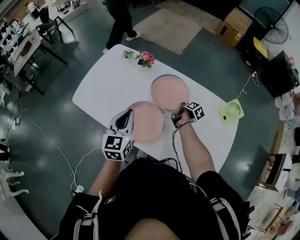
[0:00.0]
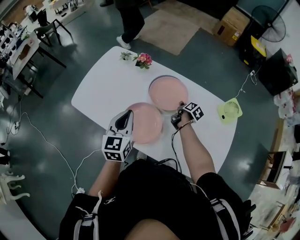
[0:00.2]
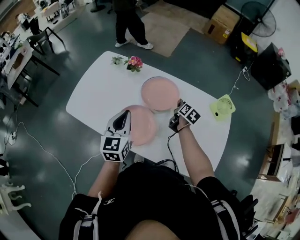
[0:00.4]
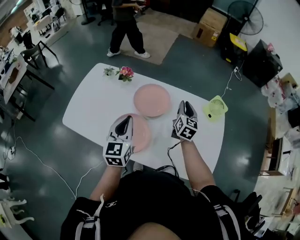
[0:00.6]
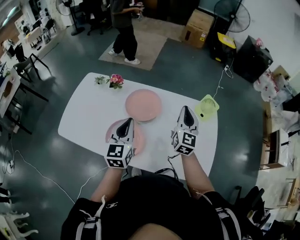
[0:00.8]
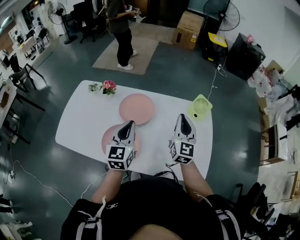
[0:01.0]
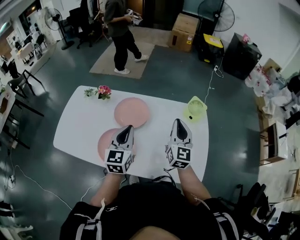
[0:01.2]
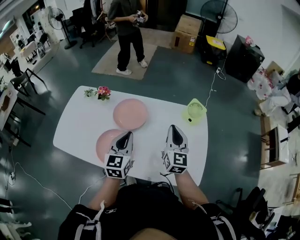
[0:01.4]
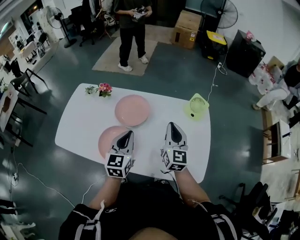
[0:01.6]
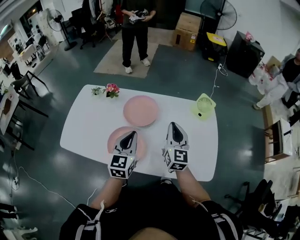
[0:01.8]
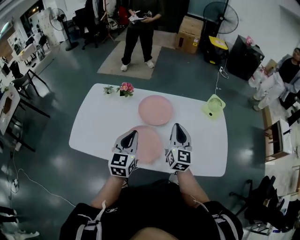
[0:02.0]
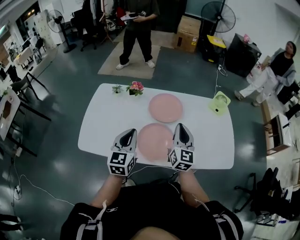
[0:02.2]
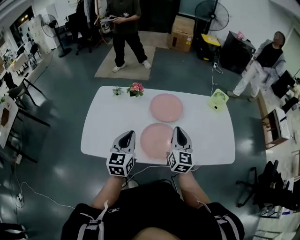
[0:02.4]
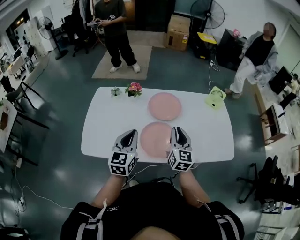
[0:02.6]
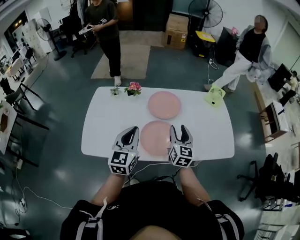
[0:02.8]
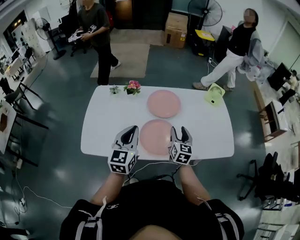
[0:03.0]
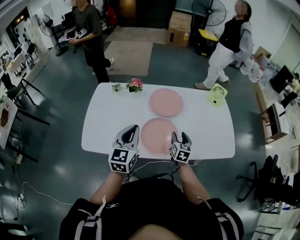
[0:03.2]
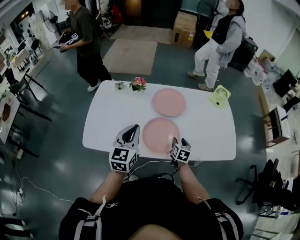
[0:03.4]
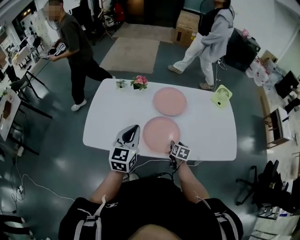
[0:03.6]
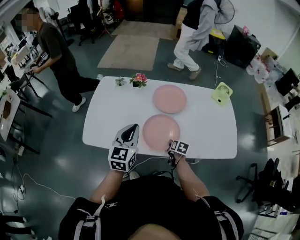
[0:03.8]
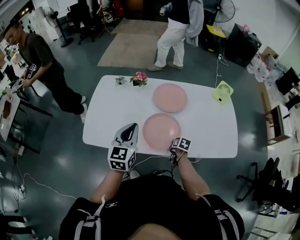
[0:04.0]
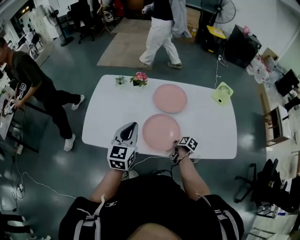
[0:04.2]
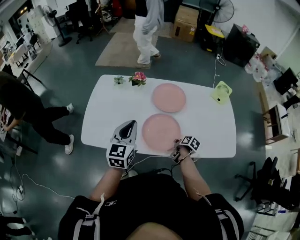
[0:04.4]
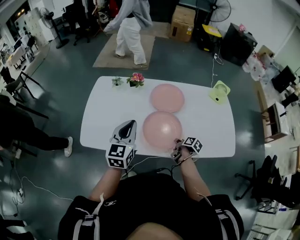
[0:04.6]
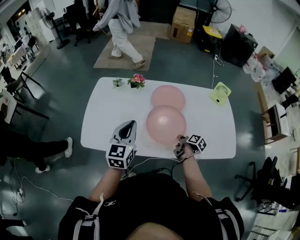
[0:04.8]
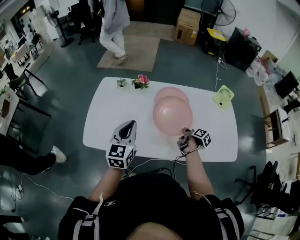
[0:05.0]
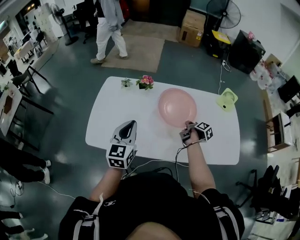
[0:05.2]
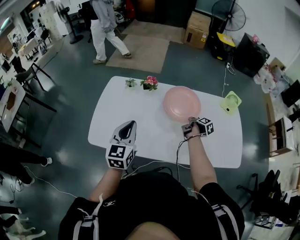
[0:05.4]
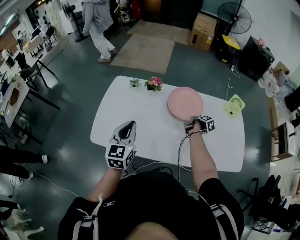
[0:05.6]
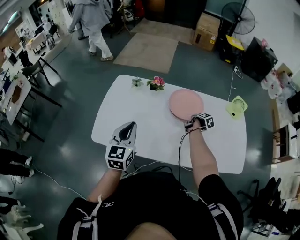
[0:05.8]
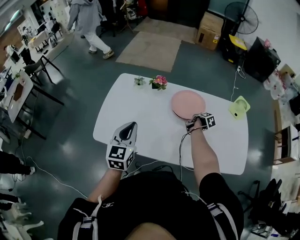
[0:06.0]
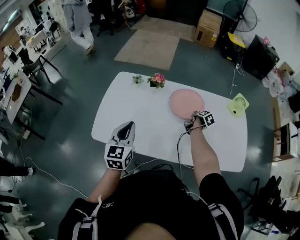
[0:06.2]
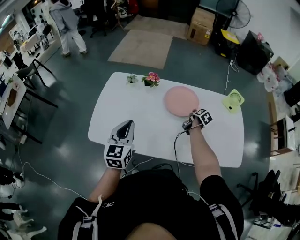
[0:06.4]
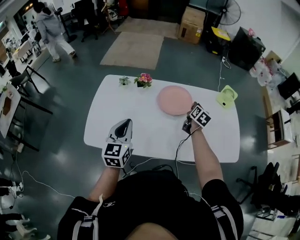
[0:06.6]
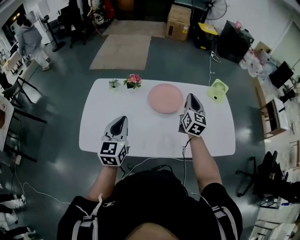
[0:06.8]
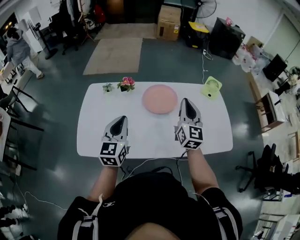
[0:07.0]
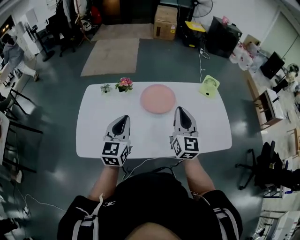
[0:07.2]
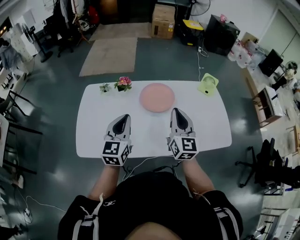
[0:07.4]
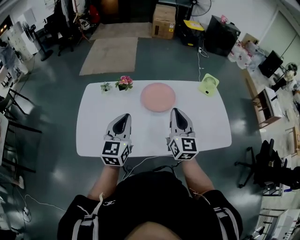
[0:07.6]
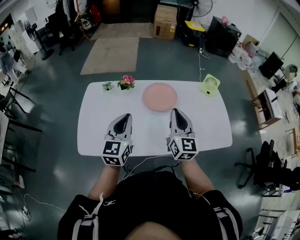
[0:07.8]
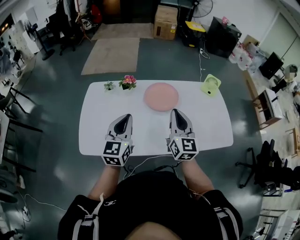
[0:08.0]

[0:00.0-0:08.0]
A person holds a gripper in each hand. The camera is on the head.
0:00.0 to 0:01.6: The left gripper heads to the right, covering roughly 20 cm, while the right gripper shifts roughly 35 cm upward, backward and to the right, and angles its fingers upward, by about 40 degrees.
0:01.6 to 0:03.2: The right gripper travels to the left, downward and backward by roughly 35 cm, rotates some 30 degrees, and opens up. The left gripper is displaced to the left and backward by roughly 35 cm.
0:03.2 to 0:04.8: The right gripper heads downward, covering approximately 10 cm, rotates around the line of its fingers by some 50 degrees, clockwise from behind, and closes up.
0:04.8 to 0:06.4: The left gripper shifts about 5 cm to the left. Meanwhile the right gripper moves forward, approximately 20 cm, swivels approximately 30 degrees, and opens.
0:06.4 to 0:08.0: The right gripper moves upward and backward, roughly 35 cm, tilts its fingers about 40 degrees upward, and closes; the left gripper goes some 5 cm upward.

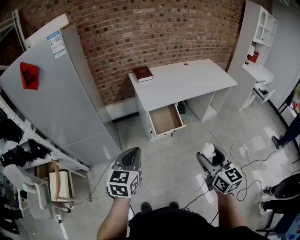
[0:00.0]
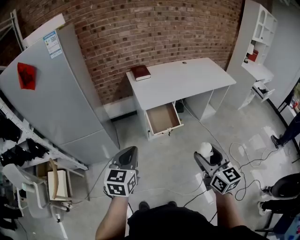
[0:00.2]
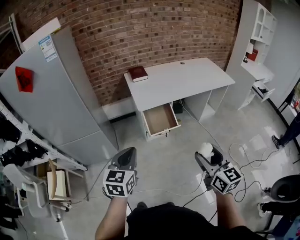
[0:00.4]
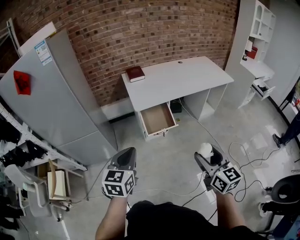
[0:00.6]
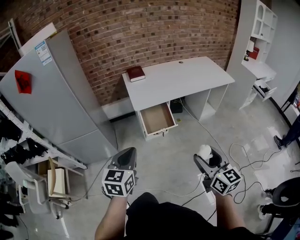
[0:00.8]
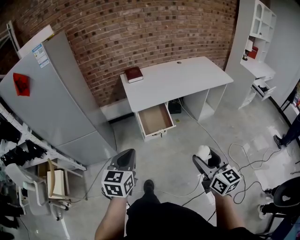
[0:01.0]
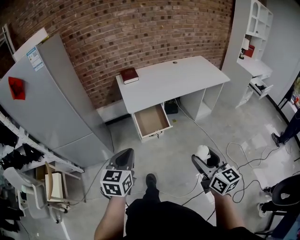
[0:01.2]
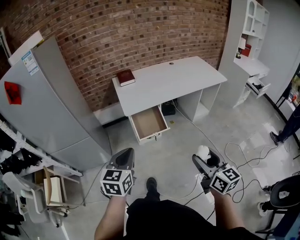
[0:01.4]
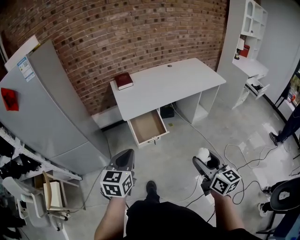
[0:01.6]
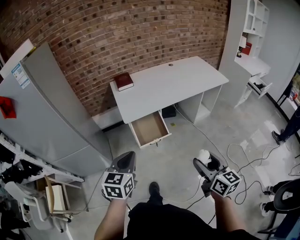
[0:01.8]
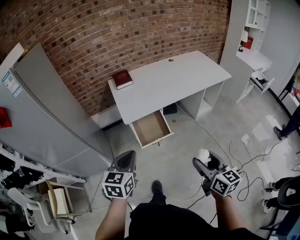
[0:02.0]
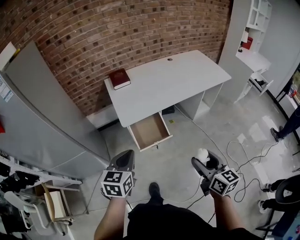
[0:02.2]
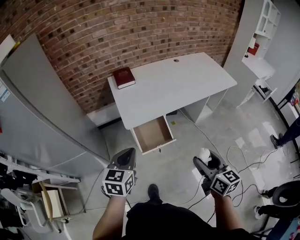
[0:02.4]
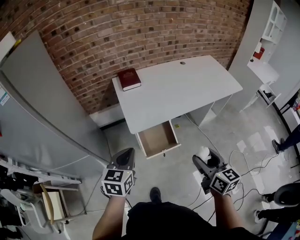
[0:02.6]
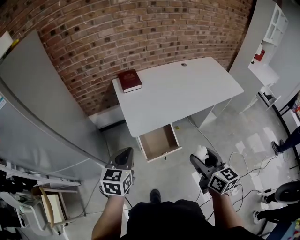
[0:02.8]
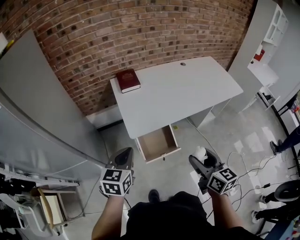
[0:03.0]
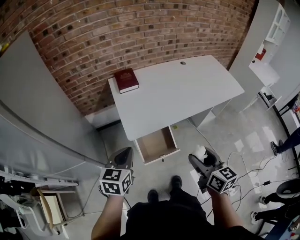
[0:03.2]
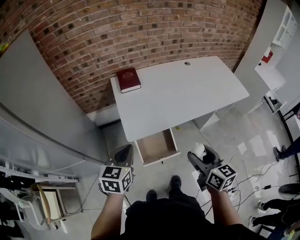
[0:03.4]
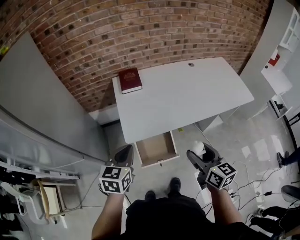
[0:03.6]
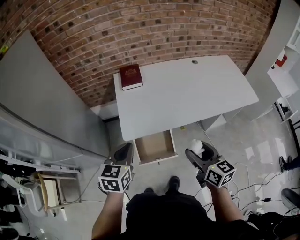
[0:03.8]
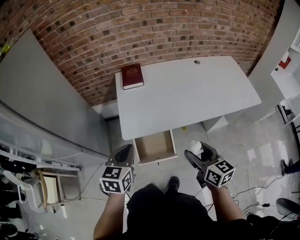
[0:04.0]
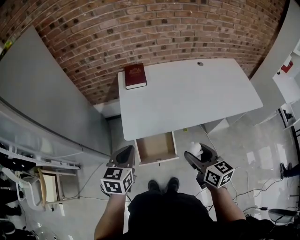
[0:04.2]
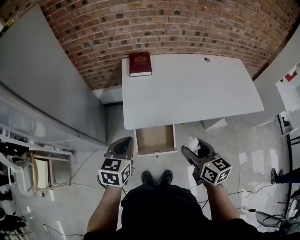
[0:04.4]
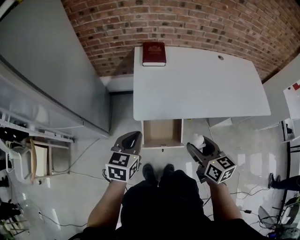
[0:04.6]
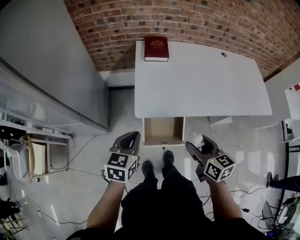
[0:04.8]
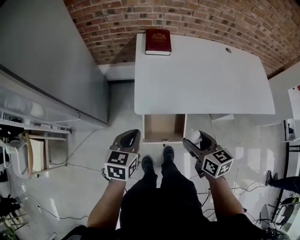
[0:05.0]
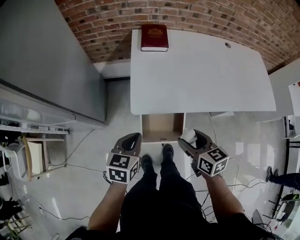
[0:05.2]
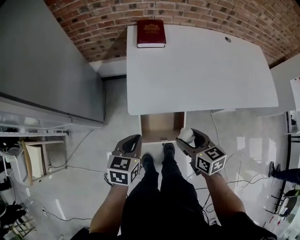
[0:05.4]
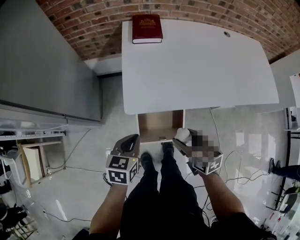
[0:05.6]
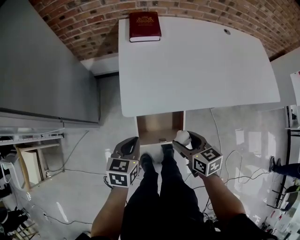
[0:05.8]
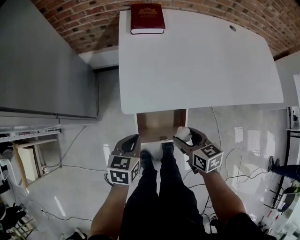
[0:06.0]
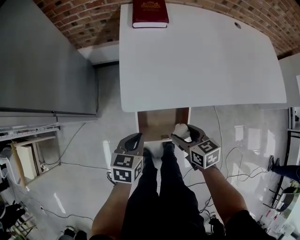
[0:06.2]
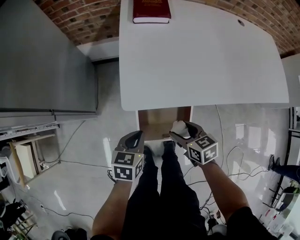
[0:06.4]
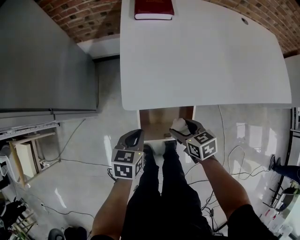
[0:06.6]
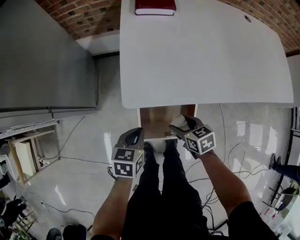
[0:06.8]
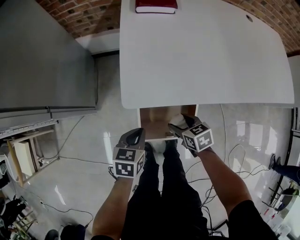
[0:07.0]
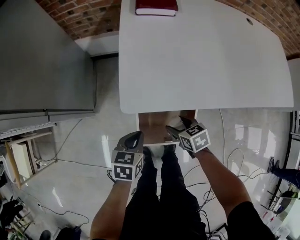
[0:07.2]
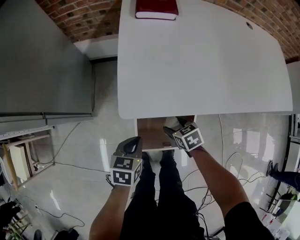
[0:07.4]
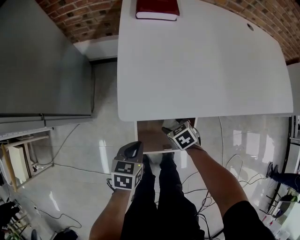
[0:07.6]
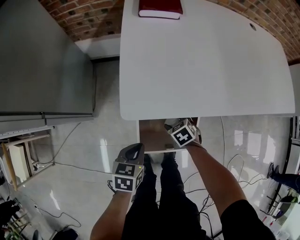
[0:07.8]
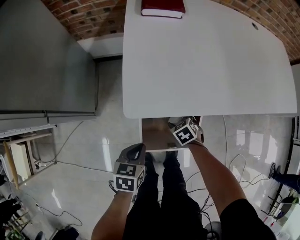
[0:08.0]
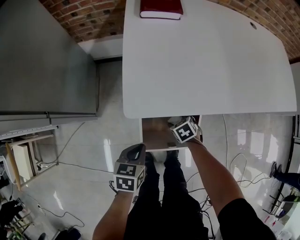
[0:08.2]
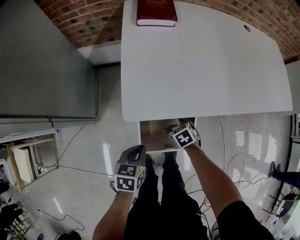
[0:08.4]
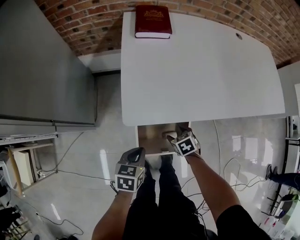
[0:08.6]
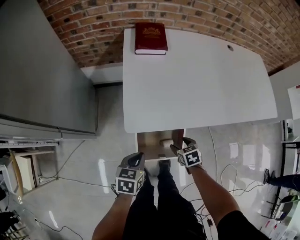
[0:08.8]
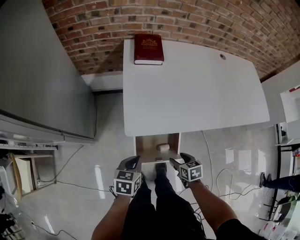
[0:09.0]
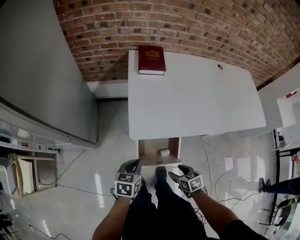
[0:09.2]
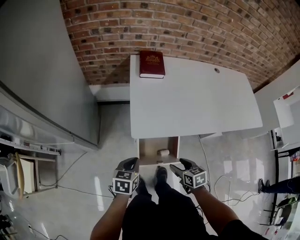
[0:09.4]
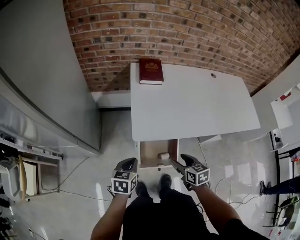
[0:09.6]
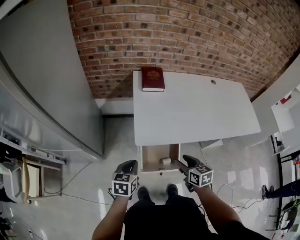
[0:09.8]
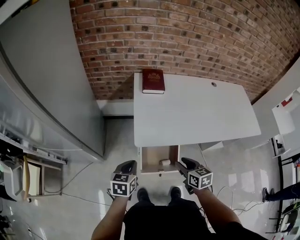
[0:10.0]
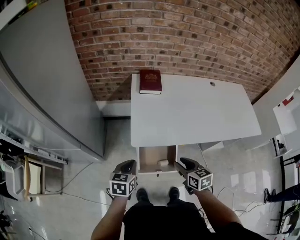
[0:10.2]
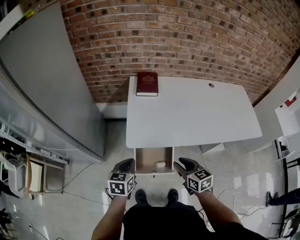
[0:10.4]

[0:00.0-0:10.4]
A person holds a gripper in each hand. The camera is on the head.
0:00.0 to 0:01.4: Both grippers travel together to the right, roughly 15 cm.
0:01.4 to 0:03.0: The two grippers go about 30 cm forward.
0:03.0 to 0:04.4: The right gripper goes roughly 15 cm forward, downward and to the right, and changes its angle by roughly 20 degrees. The left gripper heads to the right and forward, covering approximately 10 cm.
0:04.4 to 0:06.0: Both grippers travel together downward, some 25 cm. The right gripper changes its angle by about 20 degrees.
0:06.0 to 0:07.4: The left gripper goes some 10 cm downward. The right gripper is displaced downward by some 20 cm, and rotates about 20 degrees.
0:07.4 to 0:09.0: The right gripper travels upward, backward and to the right by about 15 cm; the left gripper heads upward, covering about 10 cm.
0:09.0 to 0:10.4: The right gripper travels upward by some 25 cm, swivels some 30 degrees, and closes its fingers; the left gripper goes some 15 cm upward.

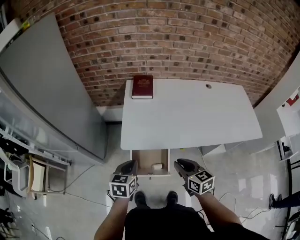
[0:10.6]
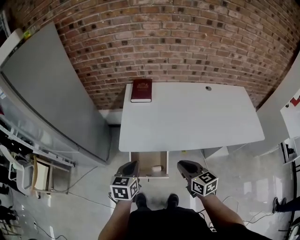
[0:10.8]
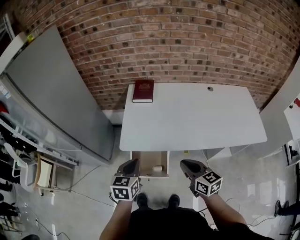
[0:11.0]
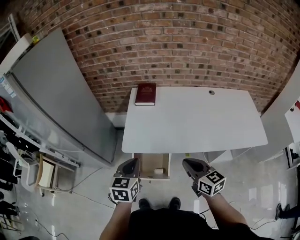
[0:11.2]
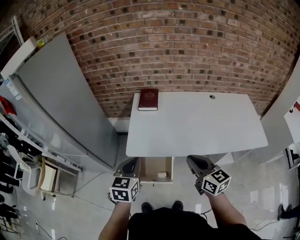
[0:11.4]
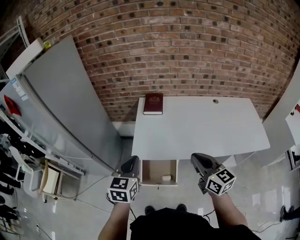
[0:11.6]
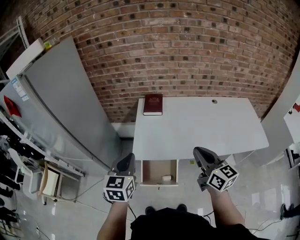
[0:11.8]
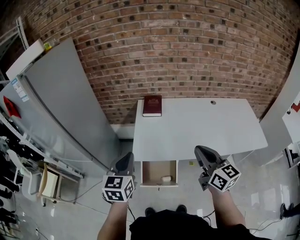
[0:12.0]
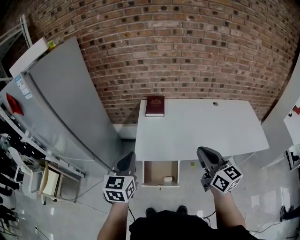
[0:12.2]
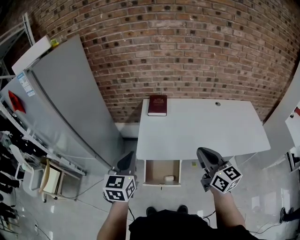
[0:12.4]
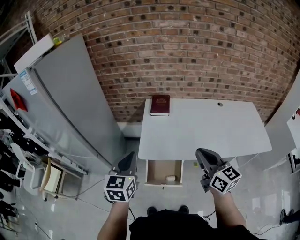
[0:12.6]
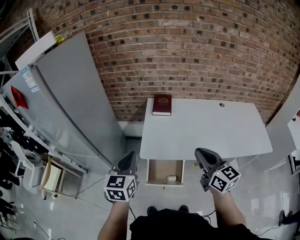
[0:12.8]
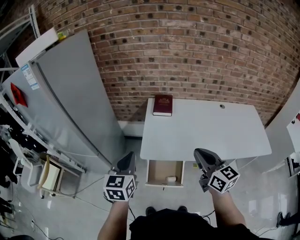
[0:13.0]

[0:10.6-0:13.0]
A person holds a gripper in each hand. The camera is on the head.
0:10.6 to 0:11.8: Both grippers travel together upward, approximately 20 cm. The right gripper swivels some 20 degrees. Meanwhile the left gripper changes its angle by roughly 20 degrees.
0:11.8 to 0:13.0: The grippers both shift to the left by about 5 cm.

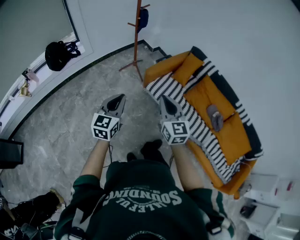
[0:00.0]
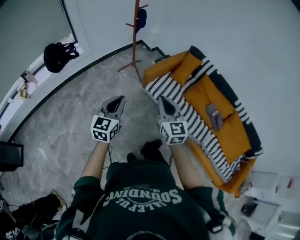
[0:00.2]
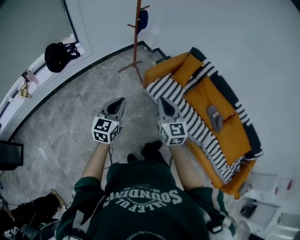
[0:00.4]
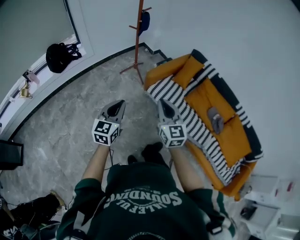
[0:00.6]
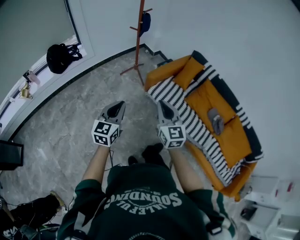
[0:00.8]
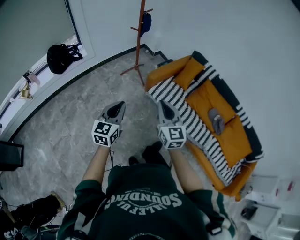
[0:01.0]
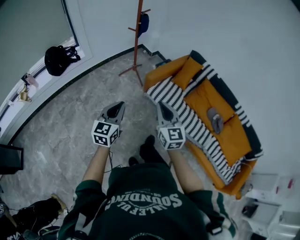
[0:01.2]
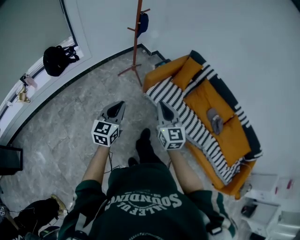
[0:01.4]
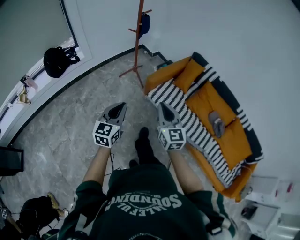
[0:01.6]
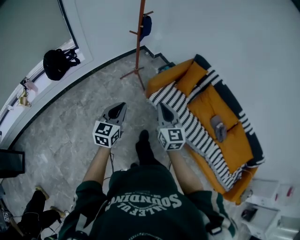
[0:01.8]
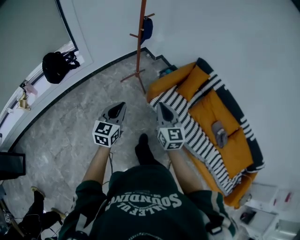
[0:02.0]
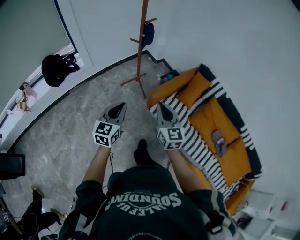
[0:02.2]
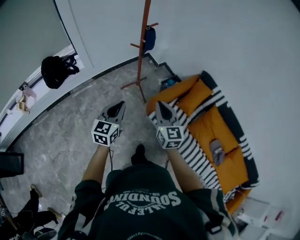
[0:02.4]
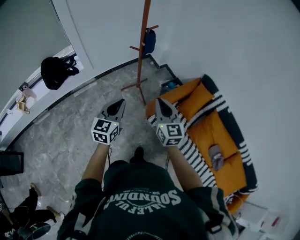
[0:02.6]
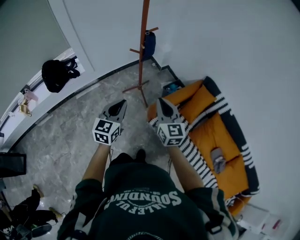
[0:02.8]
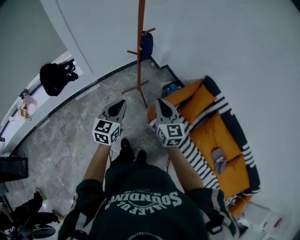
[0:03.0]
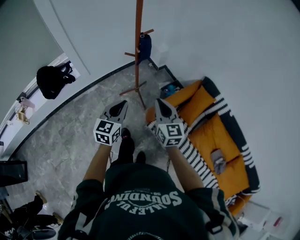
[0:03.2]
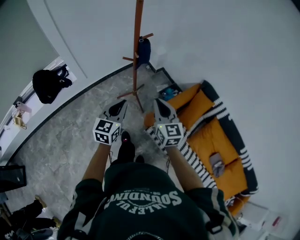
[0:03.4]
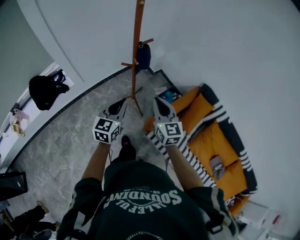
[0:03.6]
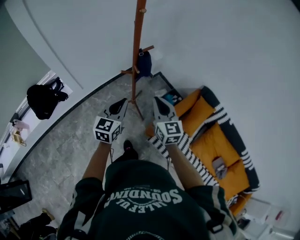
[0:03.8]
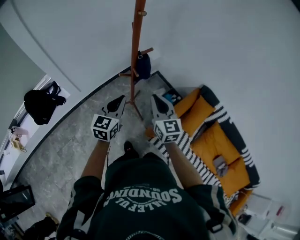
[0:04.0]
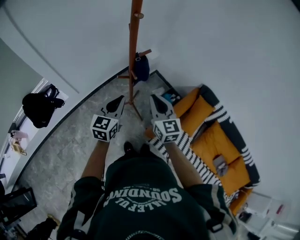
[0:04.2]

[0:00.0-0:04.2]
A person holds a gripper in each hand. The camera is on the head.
0:00.0 to 0:01.4: There are only small adjustments of the grippers.
0:01.4 to 0:02.8: Both grippers move forward, approximately 35 cm.
0:02.8 to 0:04.2: Both grippers travel together forward, about 25 cm.
